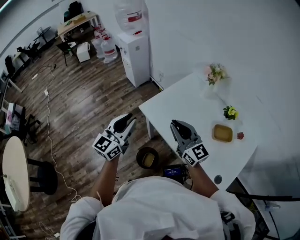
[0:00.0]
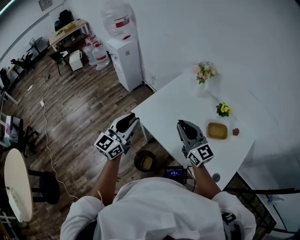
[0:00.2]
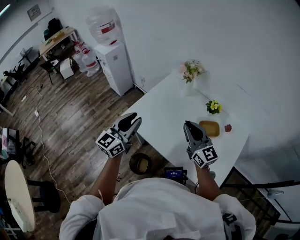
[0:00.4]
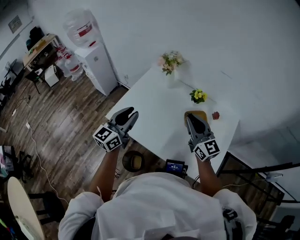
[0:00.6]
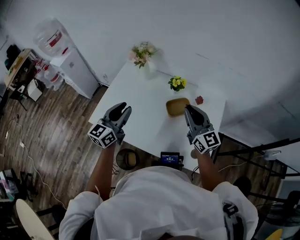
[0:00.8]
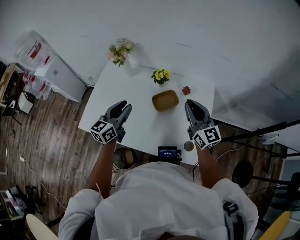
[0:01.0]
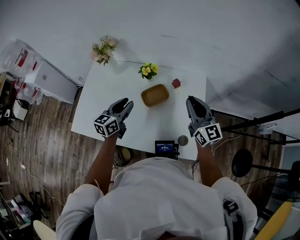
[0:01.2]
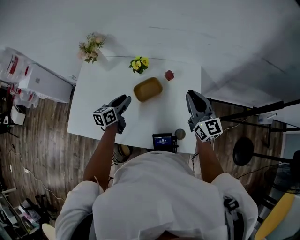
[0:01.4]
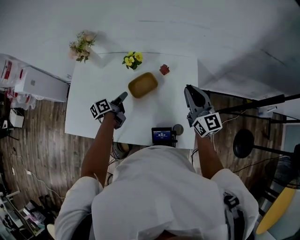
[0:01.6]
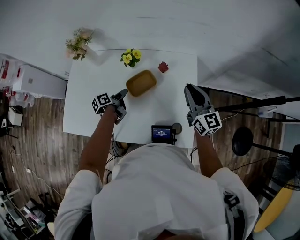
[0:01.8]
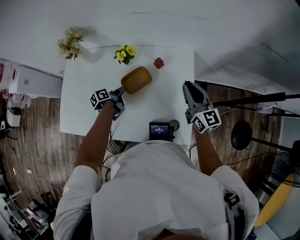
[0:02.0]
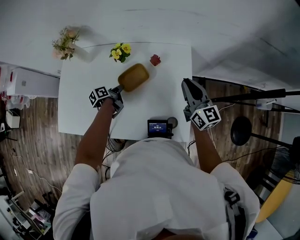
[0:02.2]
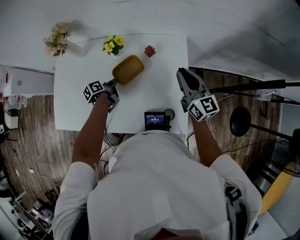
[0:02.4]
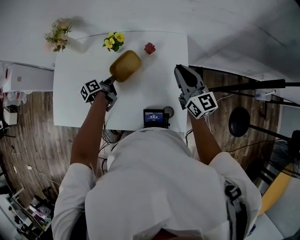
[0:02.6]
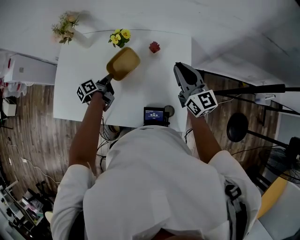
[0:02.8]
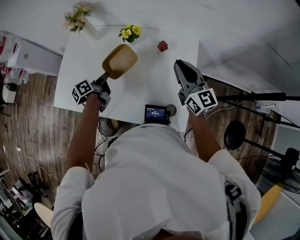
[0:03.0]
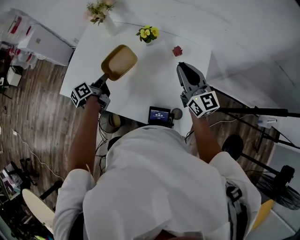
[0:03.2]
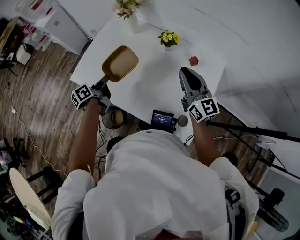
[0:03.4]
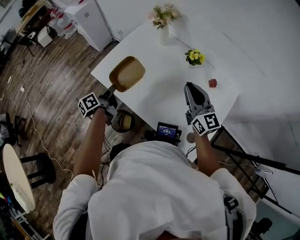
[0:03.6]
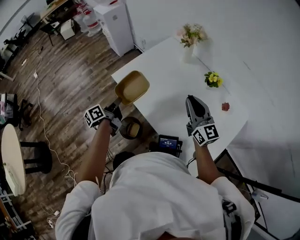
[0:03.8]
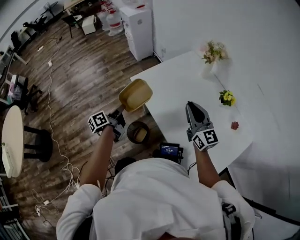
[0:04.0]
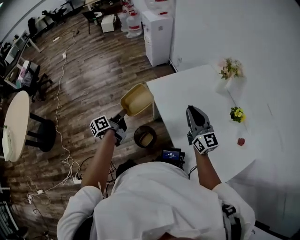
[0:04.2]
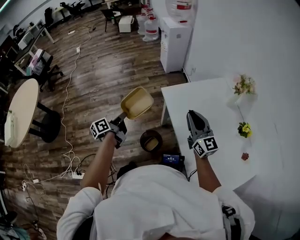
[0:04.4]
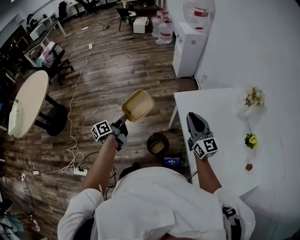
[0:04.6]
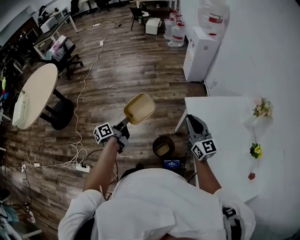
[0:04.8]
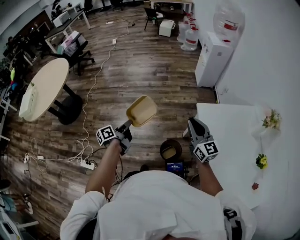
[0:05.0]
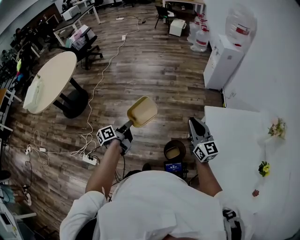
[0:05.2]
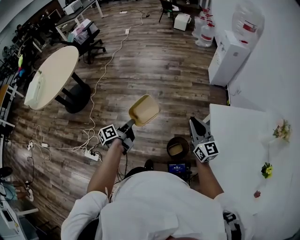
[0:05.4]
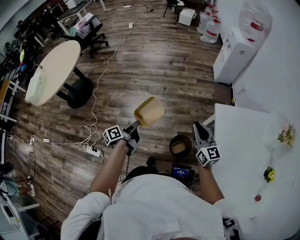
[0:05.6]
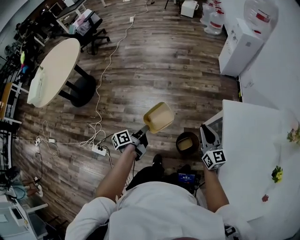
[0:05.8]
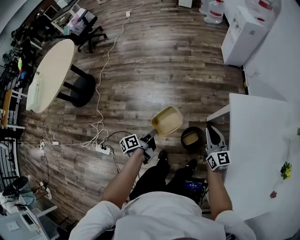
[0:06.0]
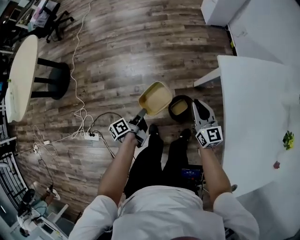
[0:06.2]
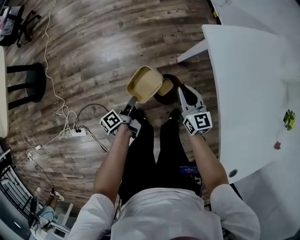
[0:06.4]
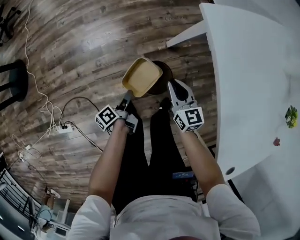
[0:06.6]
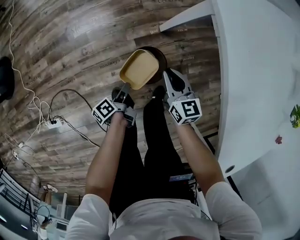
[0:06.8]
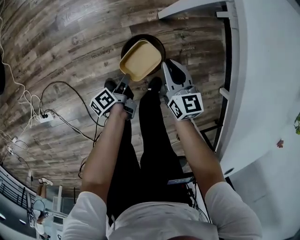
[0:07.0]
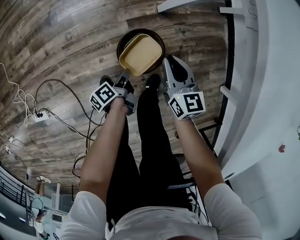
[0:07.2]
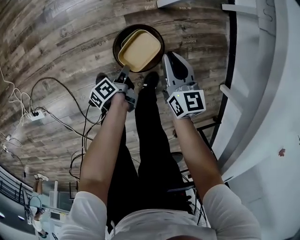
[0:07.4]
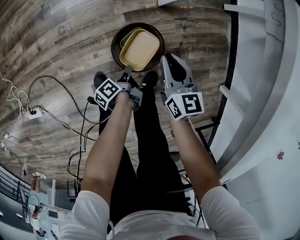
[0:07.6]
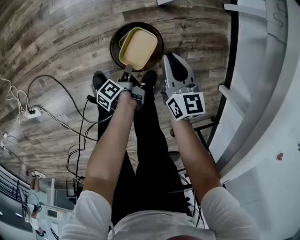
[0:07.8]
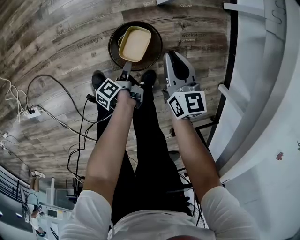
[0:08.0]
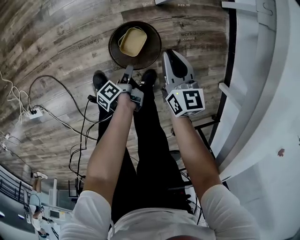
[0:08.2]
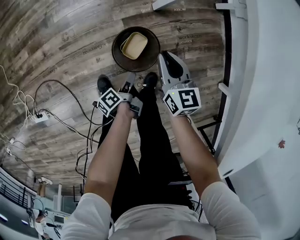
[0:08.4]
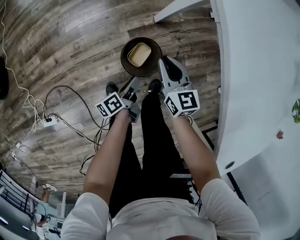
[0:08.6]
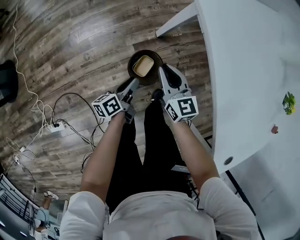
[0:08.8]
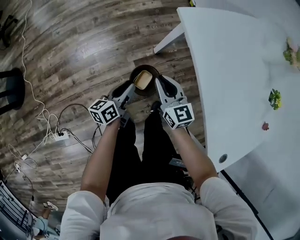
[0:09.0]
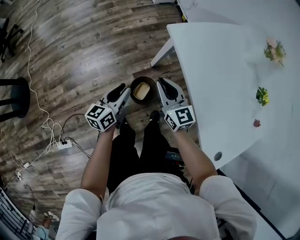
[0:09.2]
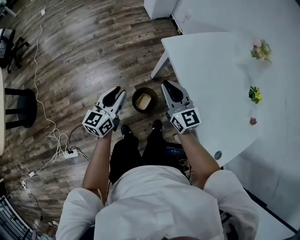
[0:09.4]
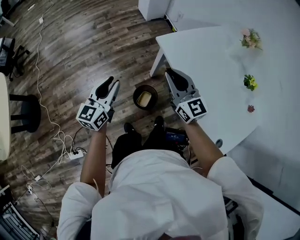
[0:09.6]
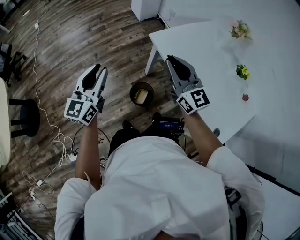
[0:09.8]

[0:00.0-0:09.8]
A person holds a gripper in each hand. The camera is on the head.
0:00.0 to 0:01.4: Both grippers are carried approximately 50 cm. The right gripper changes its angle by roughly 50 degrees, while the left gripper changes its angle by some 60 degrees.
0:01.4 to 0:02.8: The left gripper travels downward by some 10 cm, swivels roughly 40 degrees, and closes up.
0:02.8 to 0:04.2: The two grippers travel together, some 50 cm. The right gripper changes its angle by approximately 50 degrees. The left gripper turns by approximately 60 degrees.
0:04.2 to 0:05.6: The right gripper shifts by some 35 cm, and rotates approximately 30 degrees, while the left gripper moves roughly 30 cm, and changes its angle by some 30 degrees.
0:05.6 to 0:07.0: The left gripper shifts some 60 cm downward and to the right, and turns by approximately 30 degrees. Meanwhile the right gripper goes approximately 50 cm downward, and changes its angle by about 30 degrees.
0:07.0 to 0:08.4: The left gripper moves to the right and downward, some 10 cm, and opens up.
0:08.4 to 0:09.8: The grippers both shift upward by about 70 cm. The left gripper rotates around the line of its fingers by approximately 100 degrees, clockwise from behind. Meanwhile the right gripper tilts its fingers roughly 30 degrees upward.

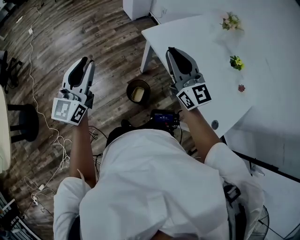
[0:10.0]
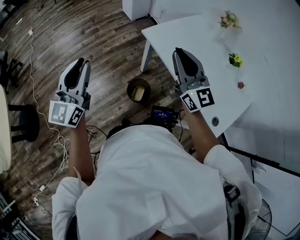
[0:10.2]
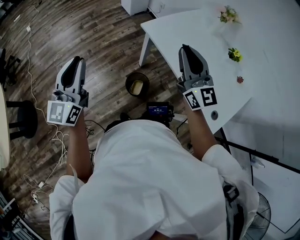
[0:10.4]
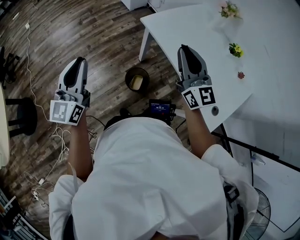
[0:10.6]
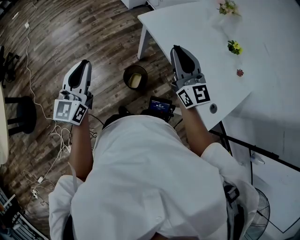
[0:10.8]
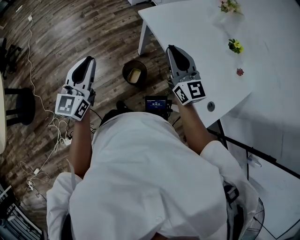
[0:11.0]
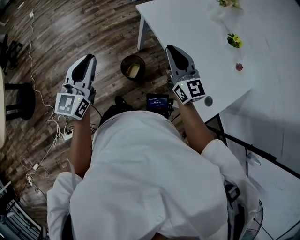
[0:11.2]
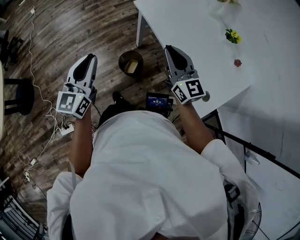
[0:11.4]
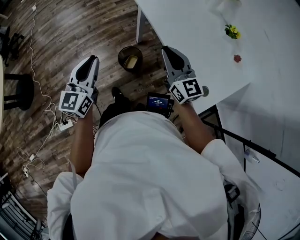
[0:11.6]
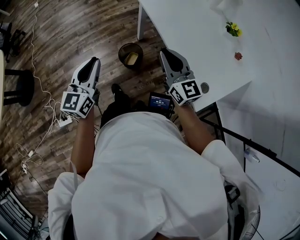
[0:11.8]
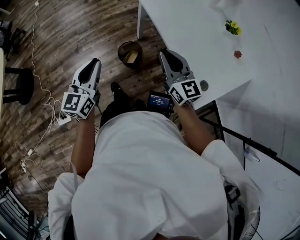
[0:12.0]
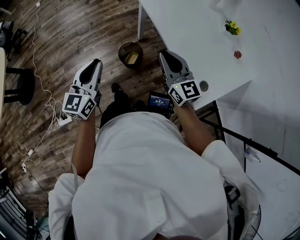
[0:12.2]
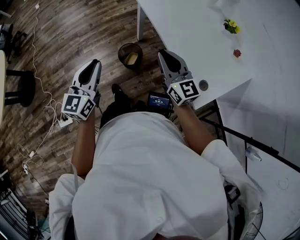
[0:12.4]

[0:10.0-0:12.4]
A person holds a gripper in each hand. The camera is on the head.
0:10.0 to 0:11.2: The left gripper is displaced backward and to the right by roughly 15 cm, while the right gripper goes approximately 15 cm backward, downward and to the right.
0:11.2 to 0:12.4: The left gripper shifts approximately 15 cm backward and to the right. The right gripper goes approximately 10 cm backward.

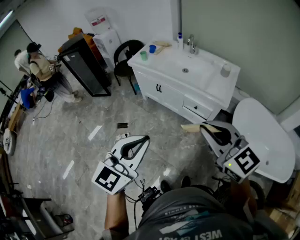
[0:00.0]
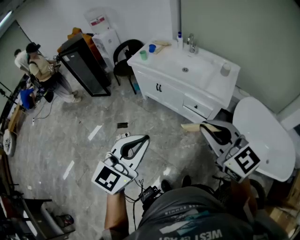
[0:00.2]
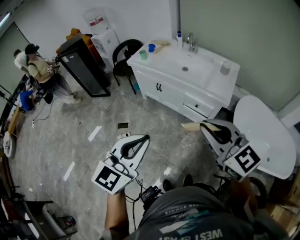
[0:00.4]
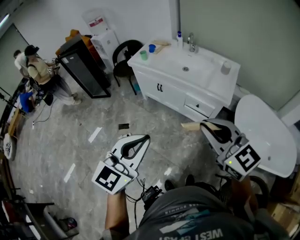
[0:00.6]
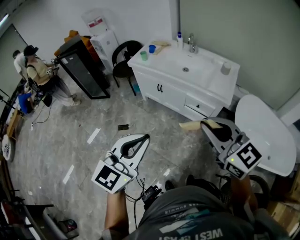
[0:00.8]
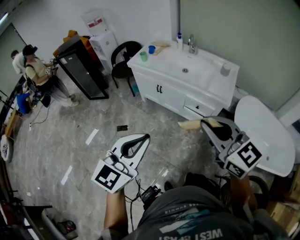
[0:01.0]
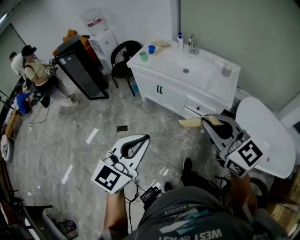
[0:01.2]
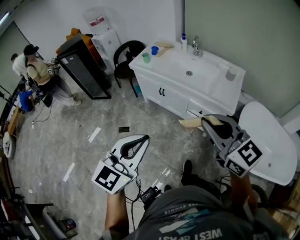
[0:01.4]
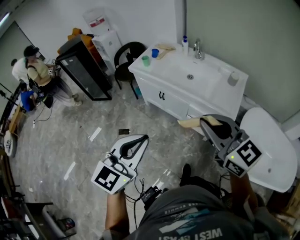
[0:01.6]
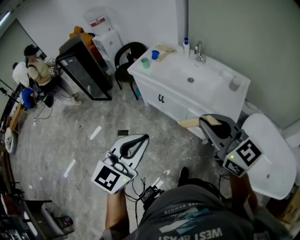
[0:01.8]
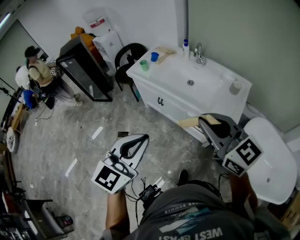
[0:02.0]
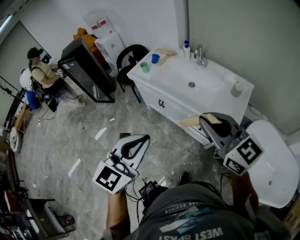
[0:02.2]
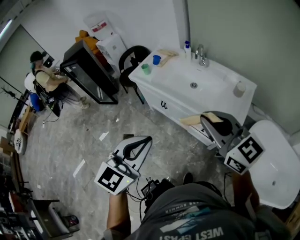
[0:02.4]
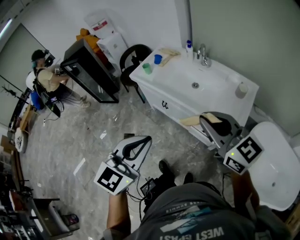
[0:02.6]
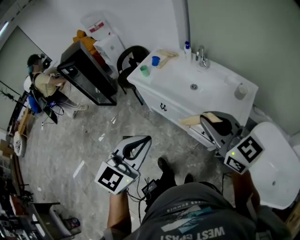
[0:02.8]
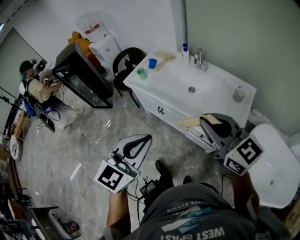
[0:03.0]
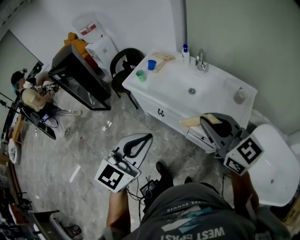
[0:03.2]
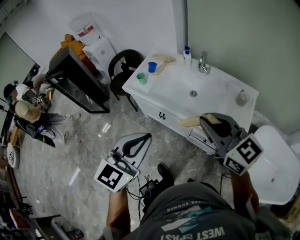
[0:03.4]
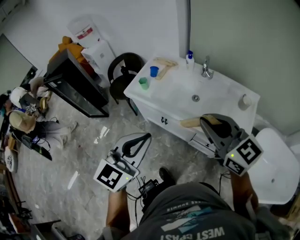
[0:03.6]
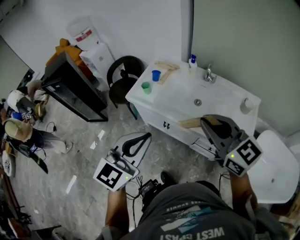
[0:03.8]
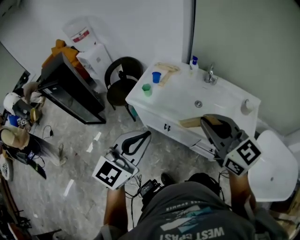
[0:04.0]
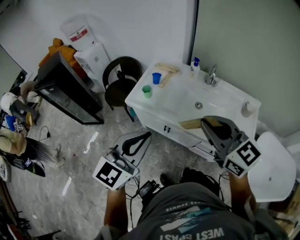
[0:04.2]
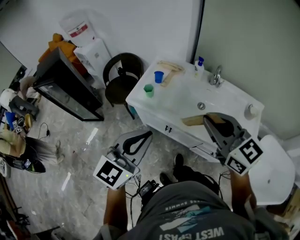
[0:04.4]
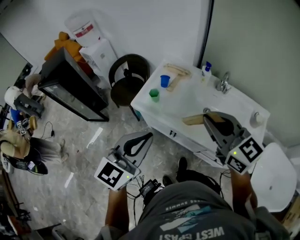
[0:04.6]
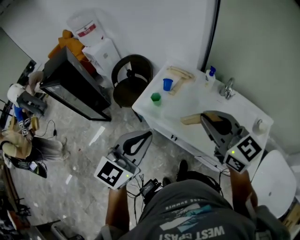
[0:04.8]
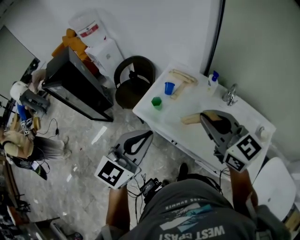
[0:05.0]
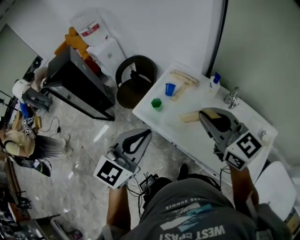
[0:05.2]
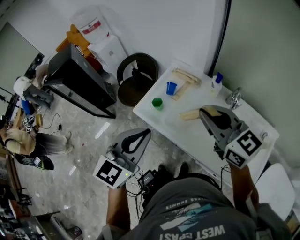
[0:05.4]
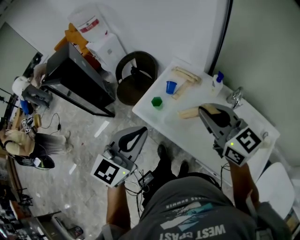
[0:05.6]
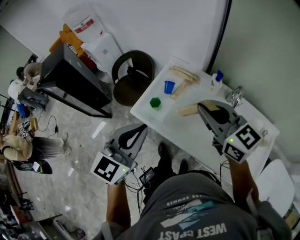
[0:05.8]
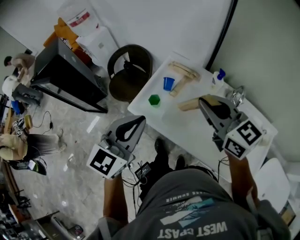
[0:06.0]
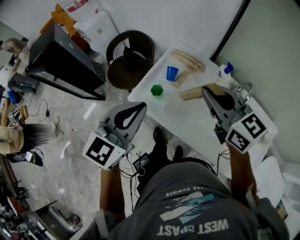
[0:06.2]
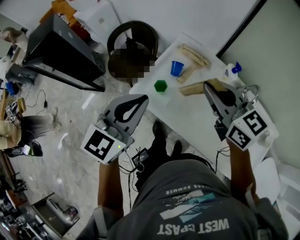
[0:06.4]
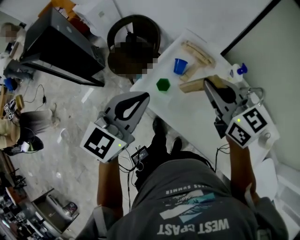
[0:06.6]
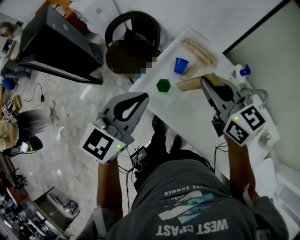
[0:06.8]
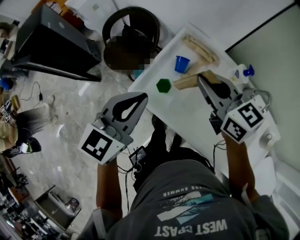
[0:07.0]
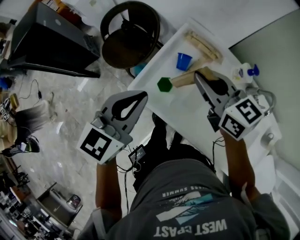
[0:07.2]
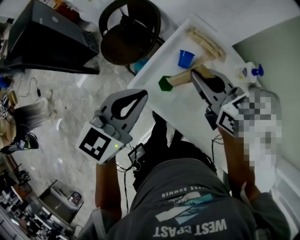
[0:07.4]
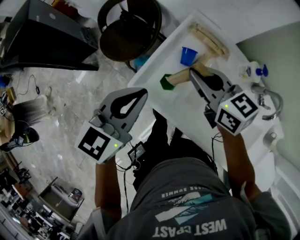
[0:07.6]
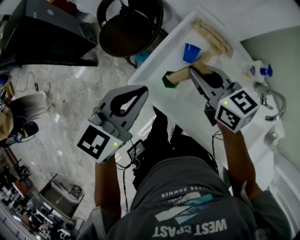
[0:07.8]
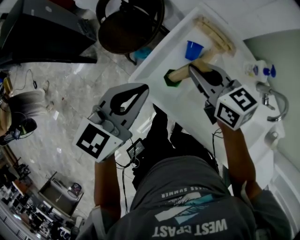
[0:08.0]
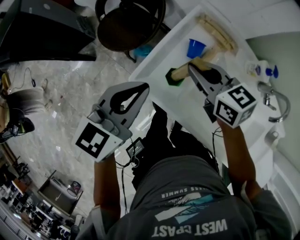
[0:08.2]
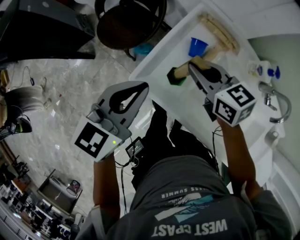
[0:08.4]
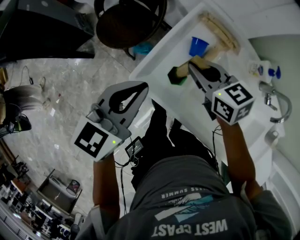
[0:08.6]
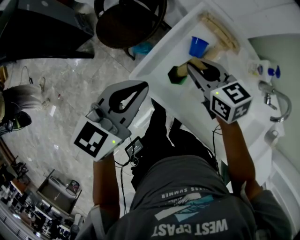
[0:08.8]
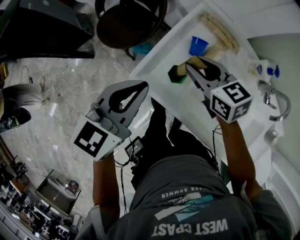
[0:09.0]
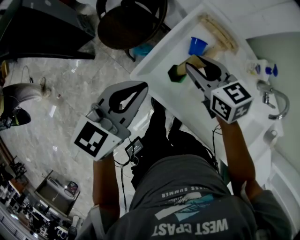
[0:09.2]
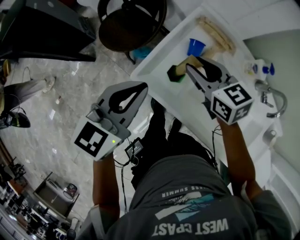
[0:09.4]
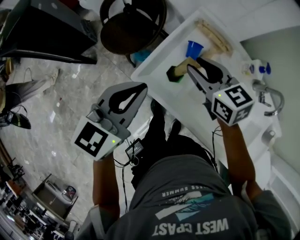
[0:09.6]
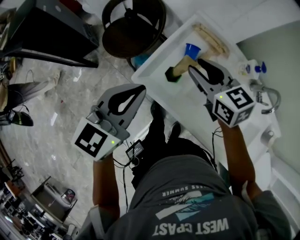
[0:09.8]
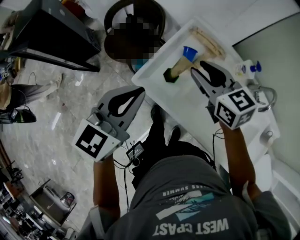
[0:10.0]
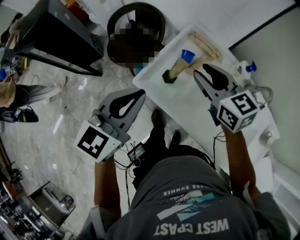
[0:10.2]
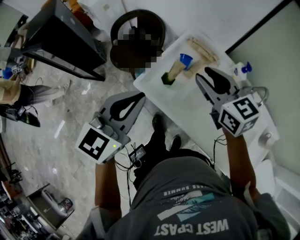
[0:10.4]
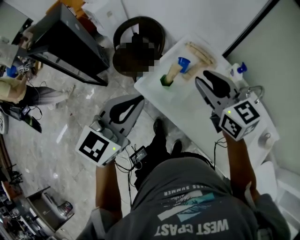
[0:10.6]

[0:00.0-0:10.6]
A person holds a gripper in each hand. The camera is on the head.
0:00.0 to 0:01.6: The grippers both shift forward by some 15 cm.
0:01.6 to 0:03.0: The left gripper heads forward and to the right, covering about 20 cm. The right gripper is displaced forward by roughly 20 cm.
0:03.0 to 0:04.6: The grippers both shift forward and to the left by about 30 cm.
0:04.6 to 0:06.0: Both grippers move forward, about 20 cm.
0:06.0 to 0:07.6: The left gripper goes about 20 cm forward, downward and to the left. The right gripper shifts roughly 25 cm downward, forward and to the left.
0:07.6 to 0:09.0: The left gripper ends up about 5 cm from where it was. The right gripper heads downward, covering roughly 10 cm, and opens its fingers.
0:09.0 to 0:10.6: The grippers both shift upward and backward by about 20 cm. The right gripper changes its angle by approximately 20 degrees.
